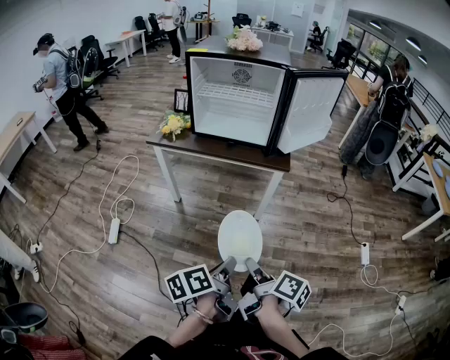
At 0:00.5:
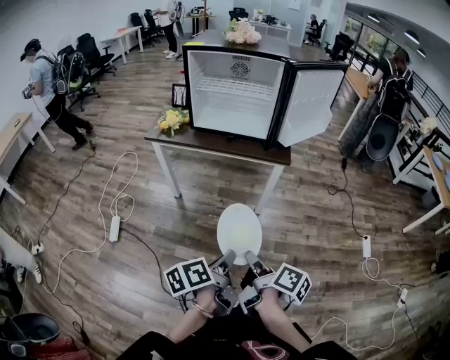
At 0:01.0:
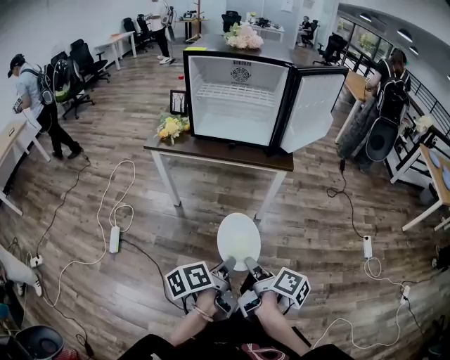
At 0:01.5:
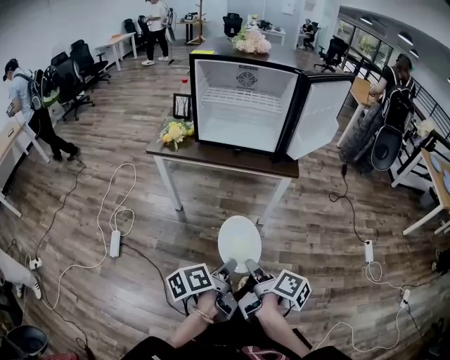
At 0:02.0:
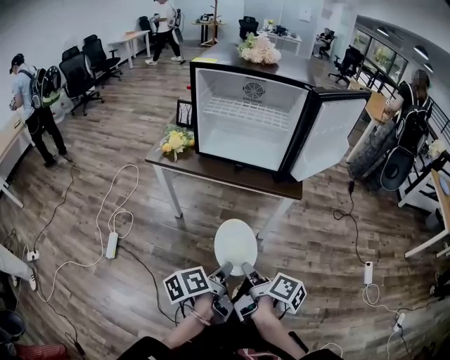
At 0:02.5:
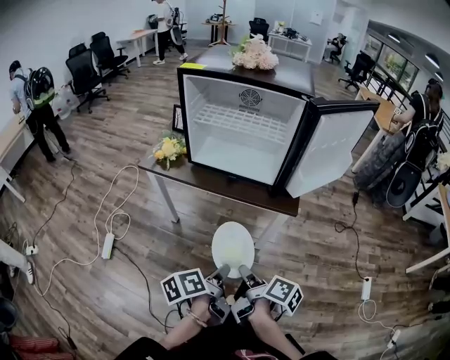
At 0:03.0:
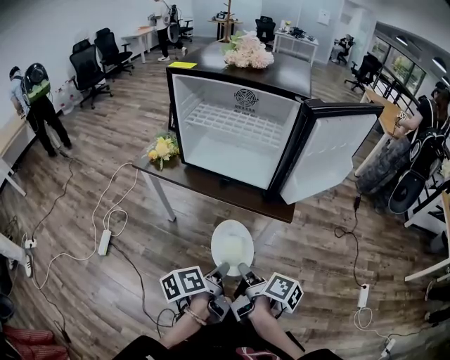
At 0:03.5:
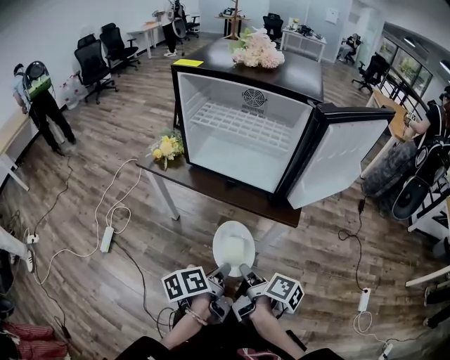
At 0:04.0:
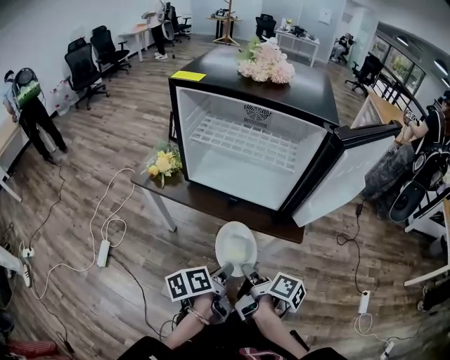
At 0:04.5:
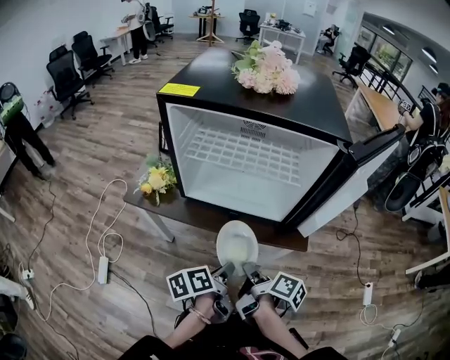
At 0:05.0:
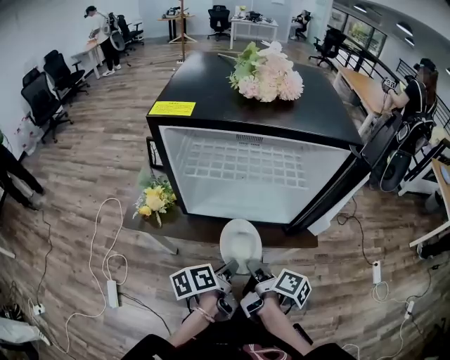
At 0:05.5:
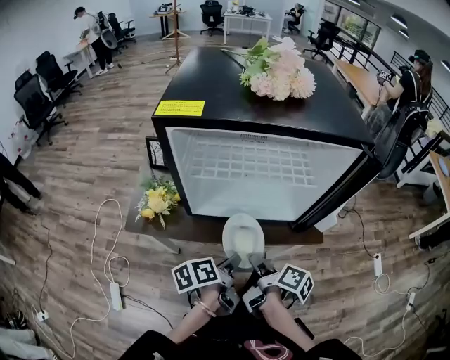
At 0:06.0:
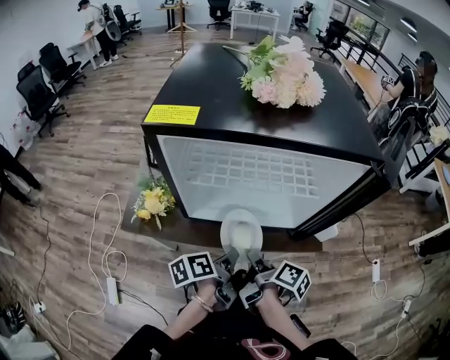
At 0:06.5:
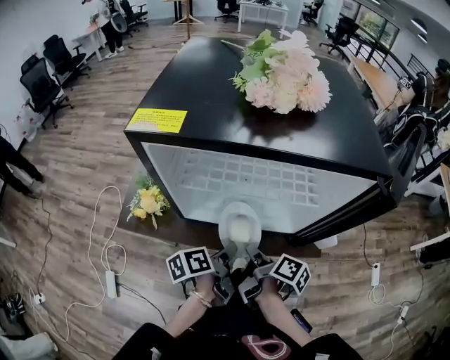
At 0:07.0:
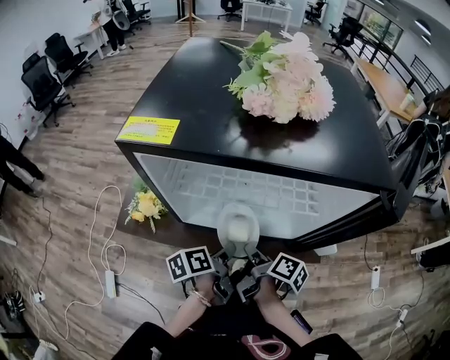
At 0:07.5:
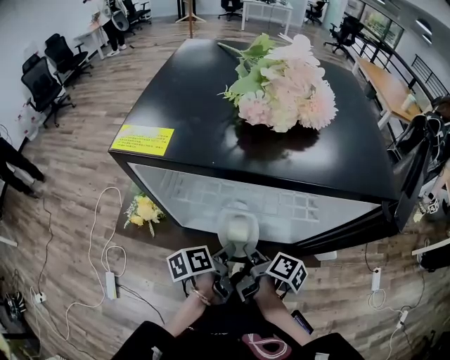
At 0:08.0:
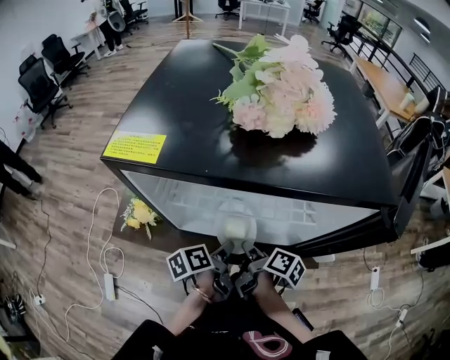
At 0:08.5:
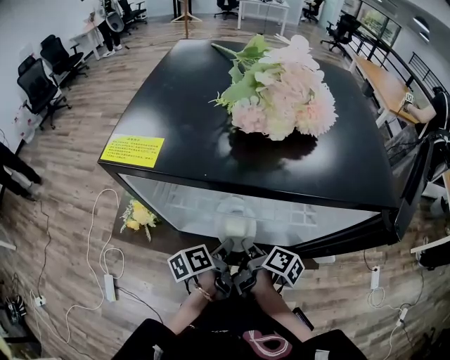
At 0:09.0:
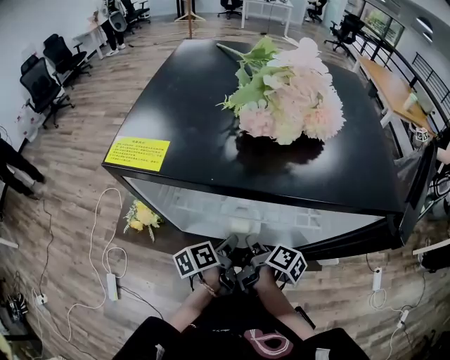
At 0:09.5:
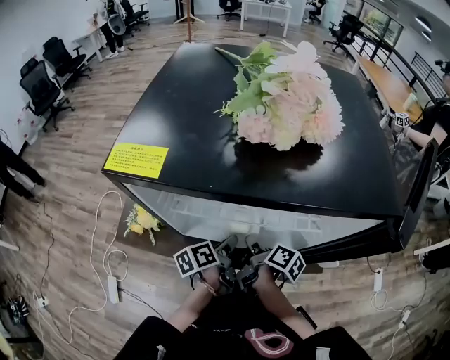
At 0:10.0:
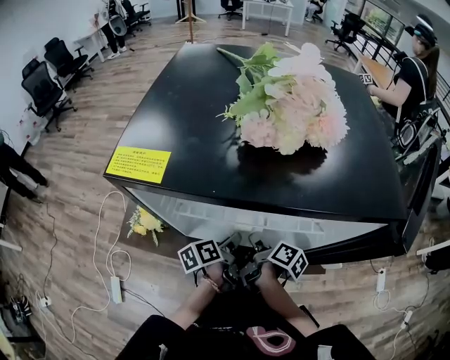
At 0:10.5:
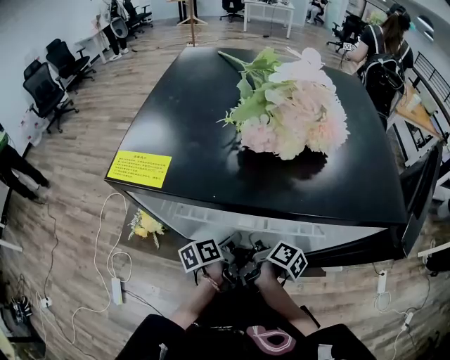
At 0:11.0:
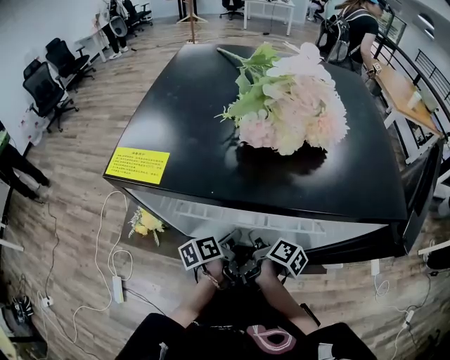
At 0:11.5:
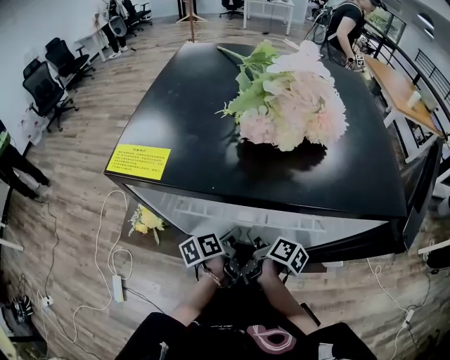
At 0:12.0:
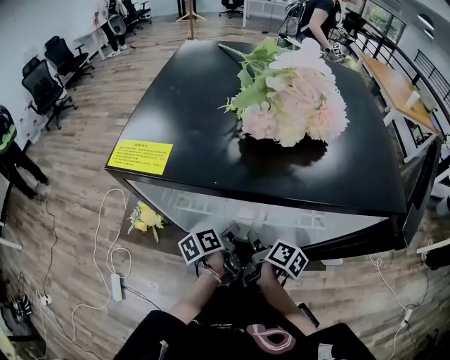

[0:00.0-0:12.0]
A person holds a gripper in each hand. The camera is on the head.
0:00.0 to 0:02.0: The left gripper ends up approximately 15 cm from where it was.
0:02.0 to 0:04.0: The left gripper moves about 20 cm.
0:04.0 to 0:06.0: The left gripper shifts by some 20 cm.
0:06.0 to 0:08.0: The left gripper shifts by about 10 cm.
0:08.0 to 0:10.0: The left gripper changes place by about 5 cm.

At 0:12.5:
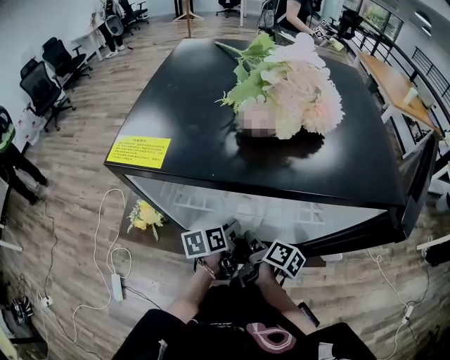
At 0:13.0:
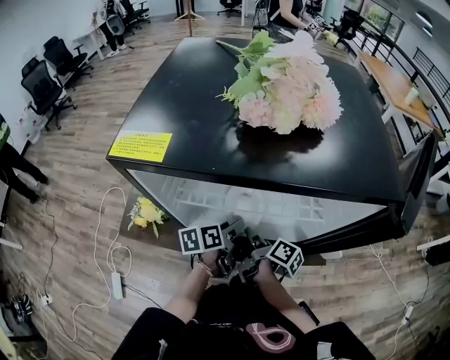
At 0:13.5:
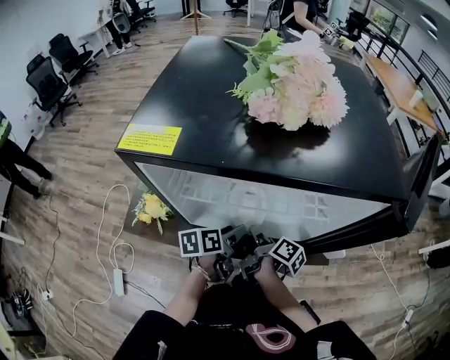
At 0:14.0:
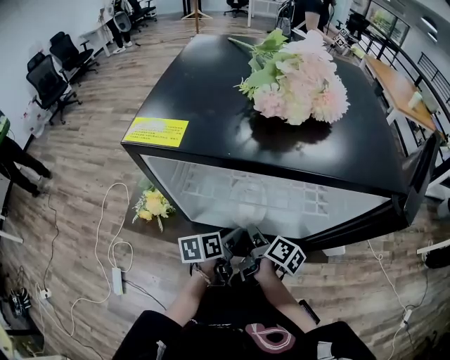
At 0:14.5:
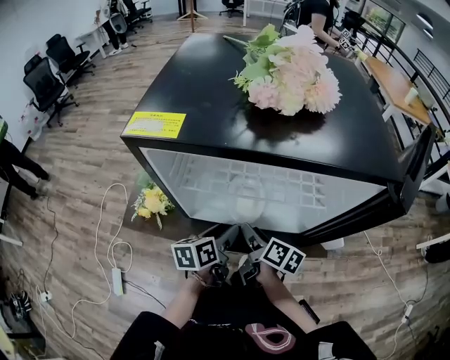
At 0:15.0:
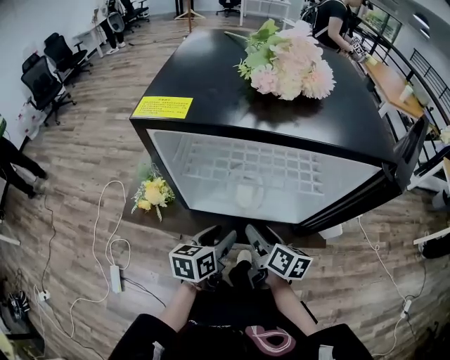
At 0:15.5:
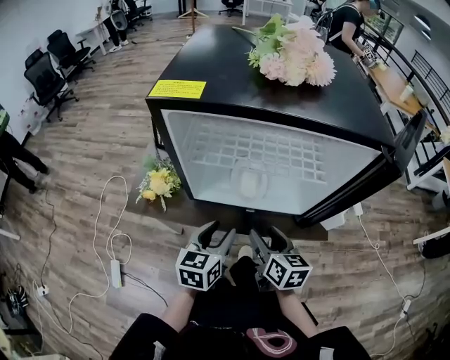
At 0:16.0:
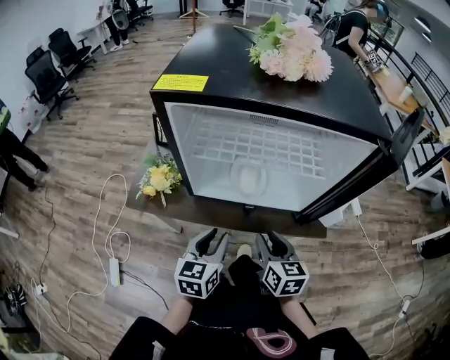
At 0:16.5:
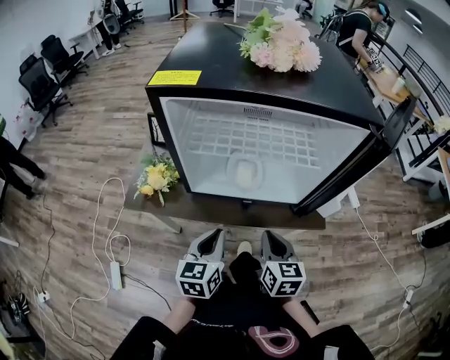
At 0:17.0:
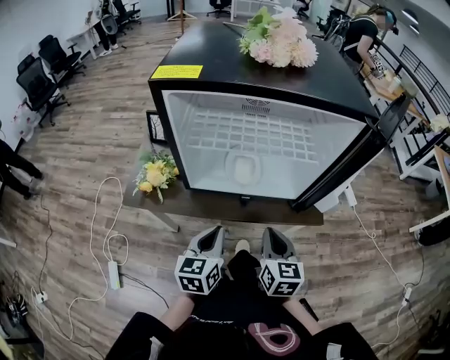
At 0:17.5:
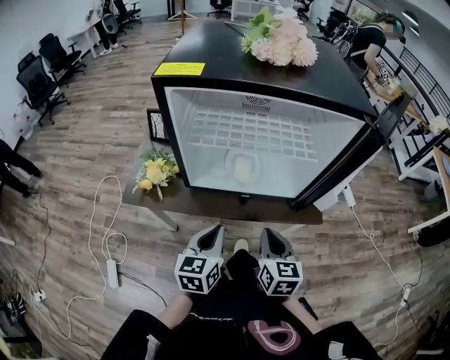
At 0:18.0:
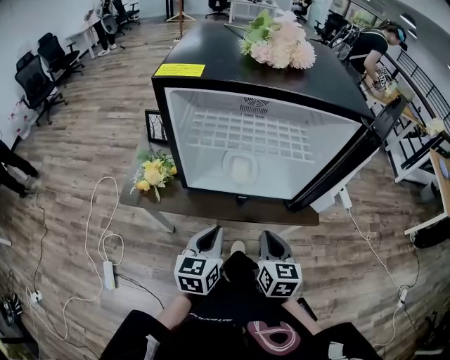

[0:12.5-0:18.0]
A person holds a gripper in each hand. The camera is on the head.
0:12.5 to 0:14.5: The left gripper changes place by about 5 cm, and opens its fingers.
0:14.5 to 0:16.0: The left gripper ends up roughly 10 cm from where it was, swivels about 30 degrees, and closes its fingers.
0:16.0 to 0:18.0: The left gripper closes its fingers.

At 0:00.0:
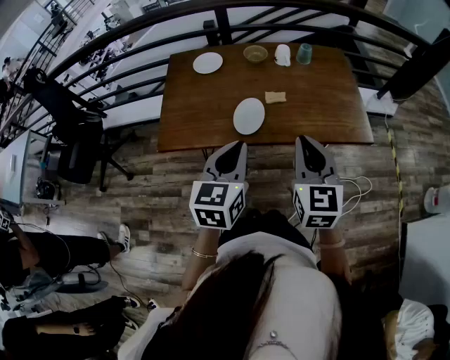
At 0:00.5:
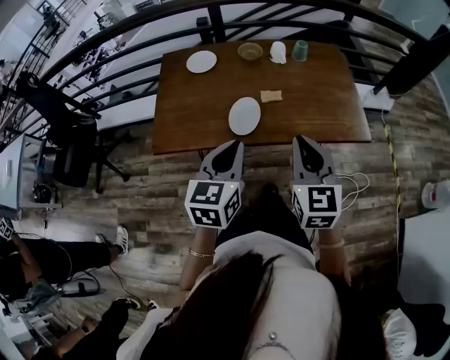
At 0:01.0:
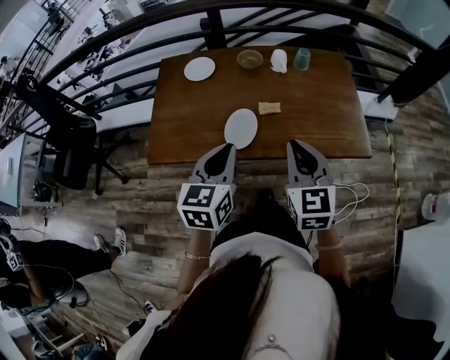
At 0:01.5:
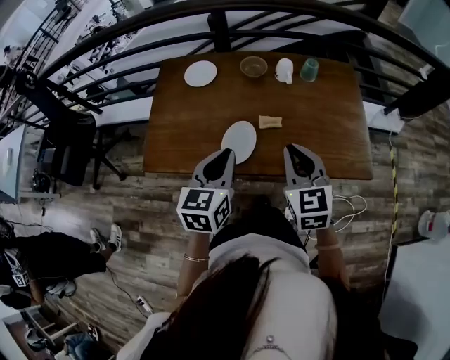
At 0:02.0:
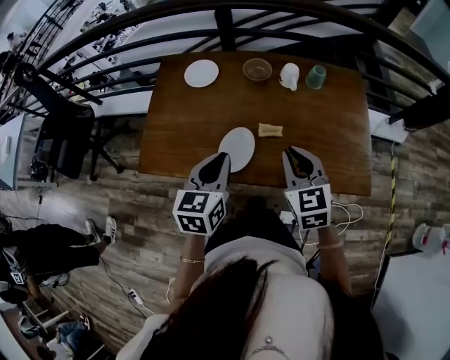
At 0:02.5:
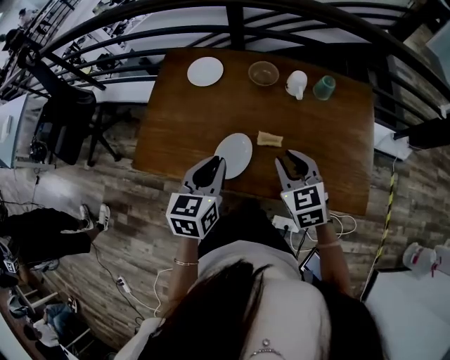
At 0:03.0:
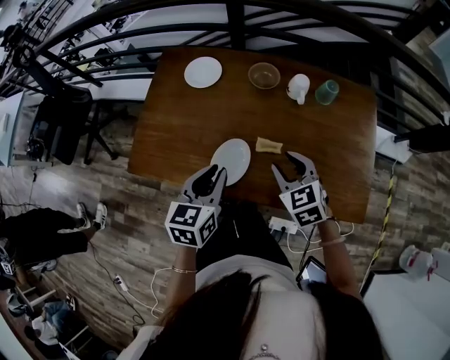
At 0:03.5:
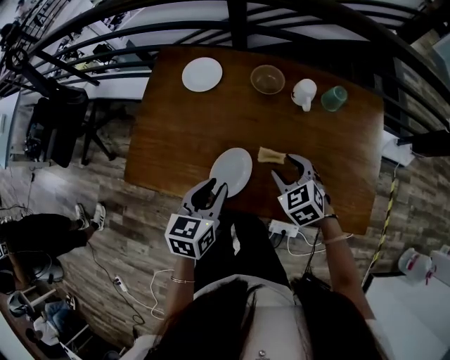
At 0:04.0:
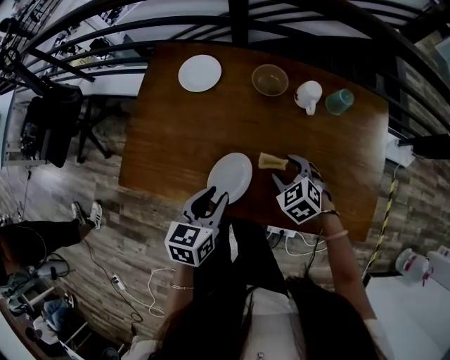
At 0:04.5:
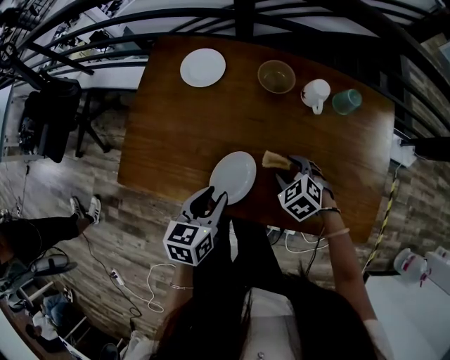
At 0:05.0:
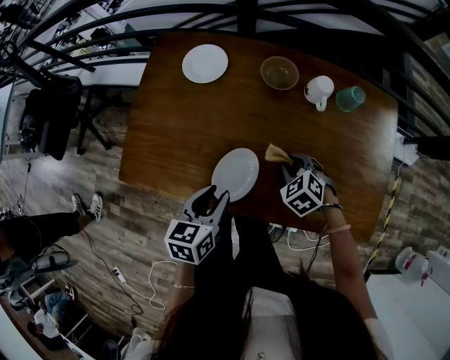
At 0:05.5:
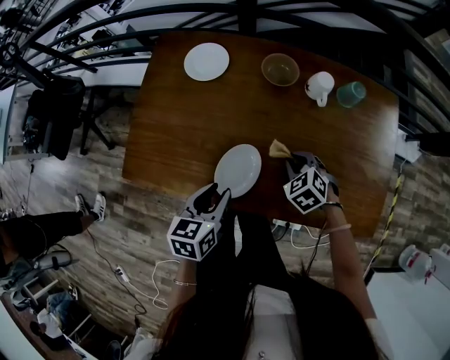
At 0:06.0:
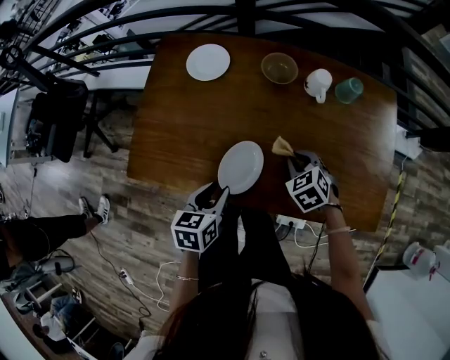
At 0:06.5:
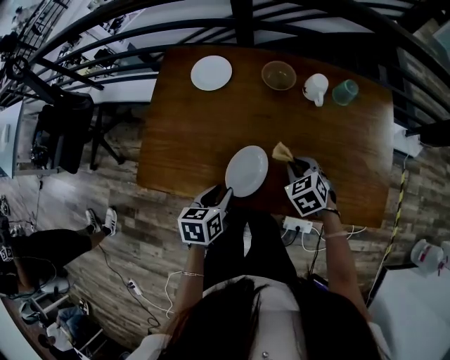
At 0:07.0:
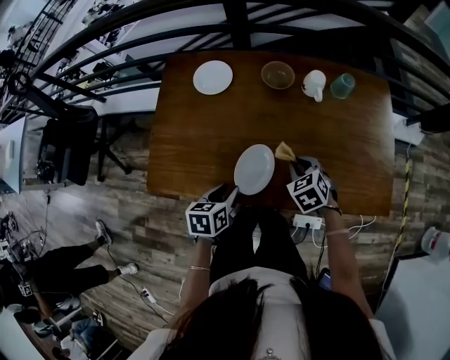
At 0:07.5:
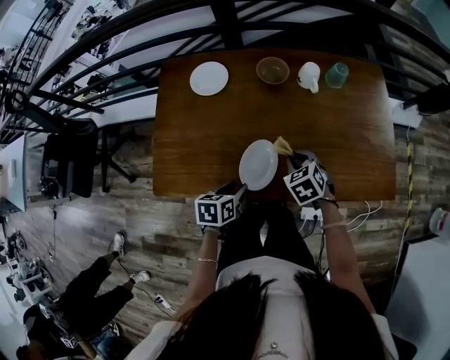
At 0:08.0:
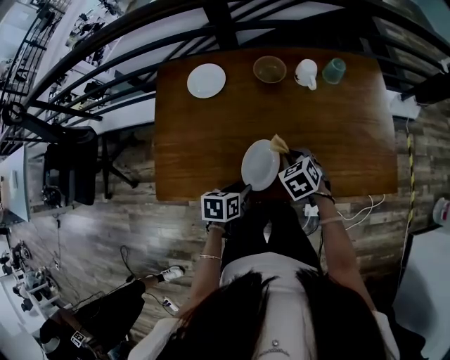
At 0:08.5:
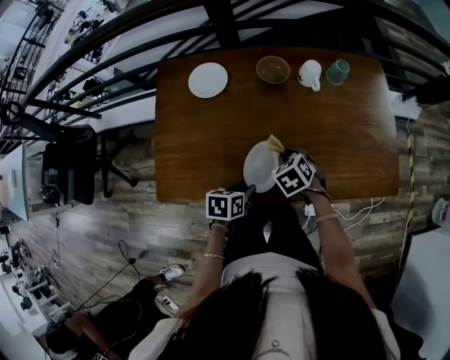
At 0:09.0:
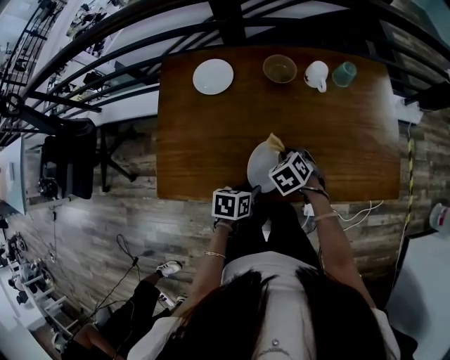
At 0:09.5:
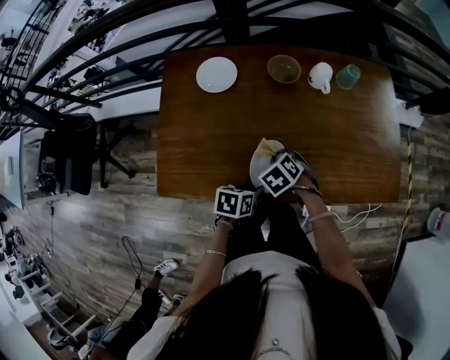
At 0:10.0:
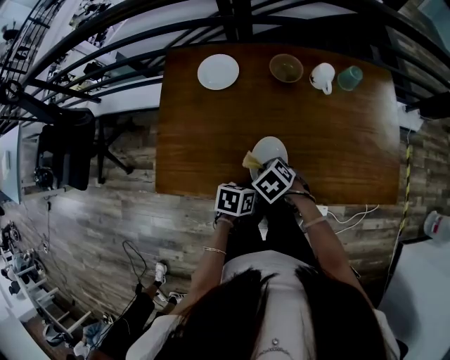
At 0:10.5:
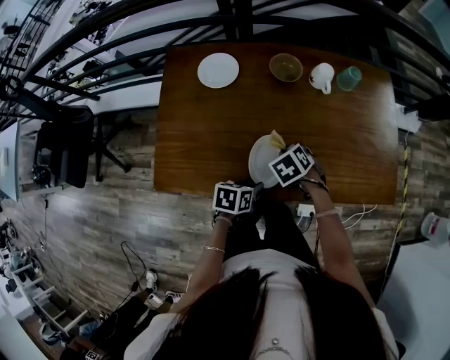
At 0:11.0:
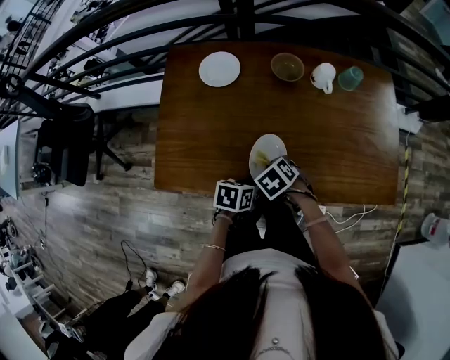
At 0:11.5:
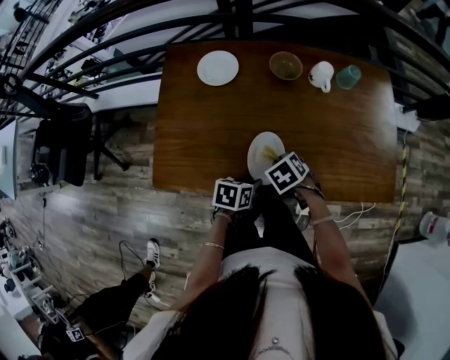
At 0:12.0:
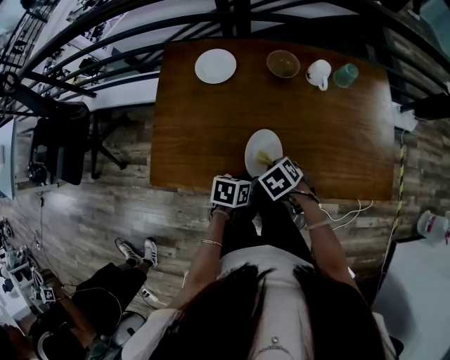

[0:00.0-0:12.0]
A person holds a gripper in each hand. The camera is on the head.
0:00.0 to 0:02.0: The grippers both shift forward and downward by roughly 20 cm. The right gripper rotates about 20 degrees.
0:02.0 to 0:04.0: The left gripper is displaced downward by approximately 10 cm, and opens, while the right gripper moves downward and forward, some 20 cm, rotates some 40 degrees, and opens up.
0:04.0 to 0:06.0: The right gripper closes. Meanwhile the left gripper shifts by roughly 5 cm.
0:06.0 to 0:08.0: The right gripper shifts some 5 cm to the left, while the left gripper swivels some 20 degrees.
0:08.0 to 0:10.0: The right gripper heads to the left and backward, covering some 10 cm, and changes its angle by about 20 degrees.
